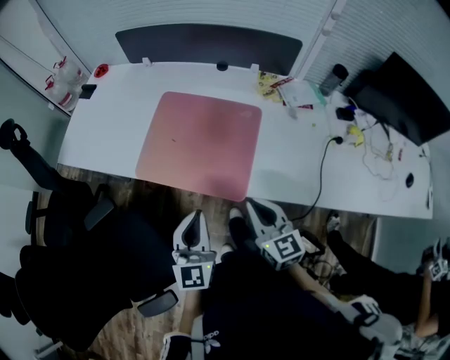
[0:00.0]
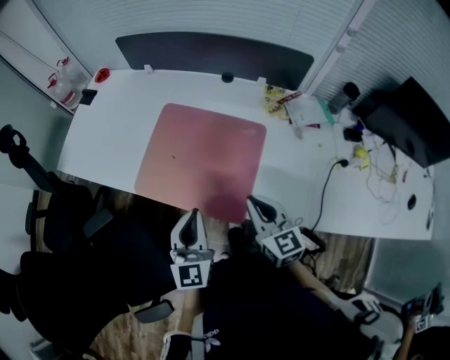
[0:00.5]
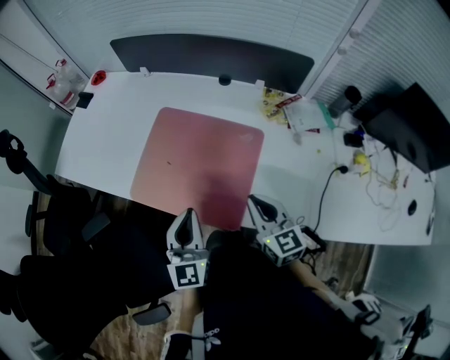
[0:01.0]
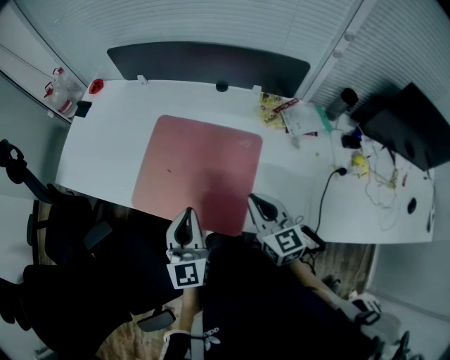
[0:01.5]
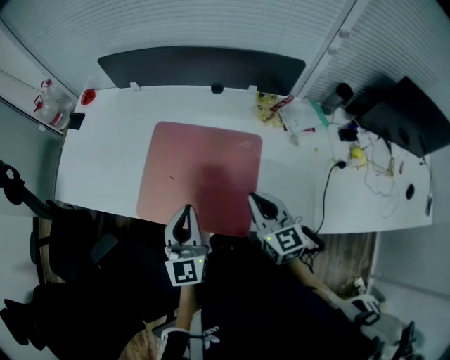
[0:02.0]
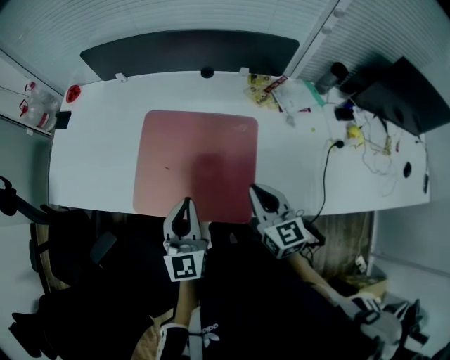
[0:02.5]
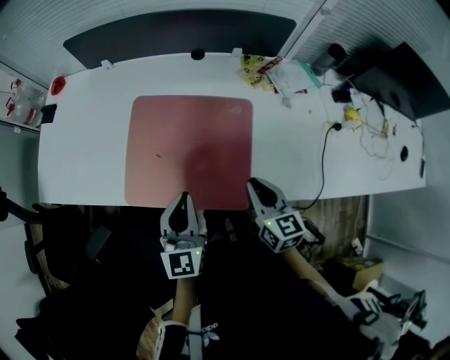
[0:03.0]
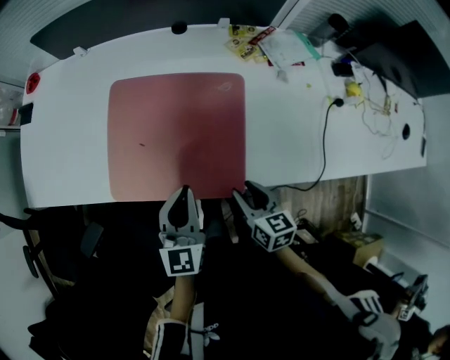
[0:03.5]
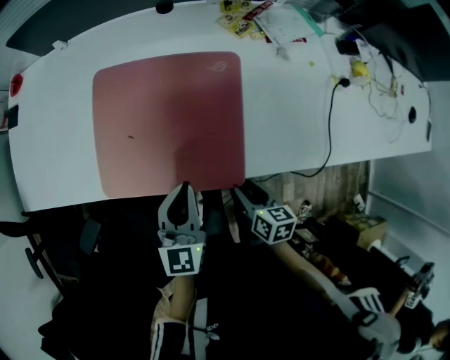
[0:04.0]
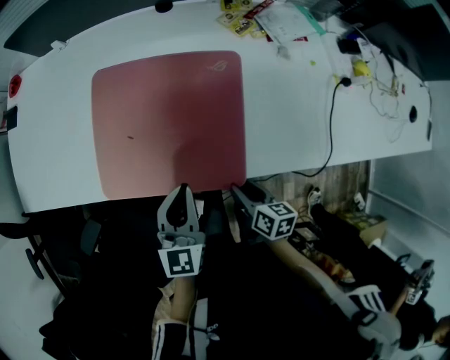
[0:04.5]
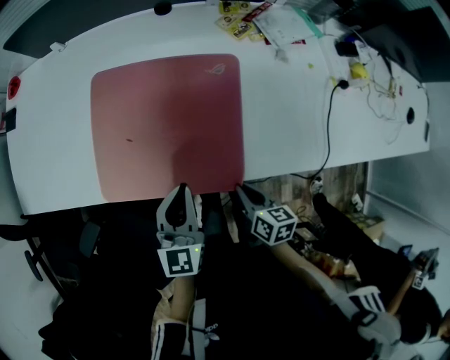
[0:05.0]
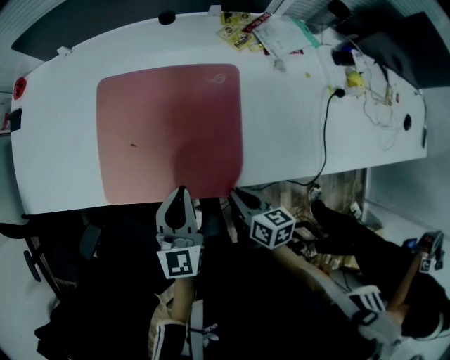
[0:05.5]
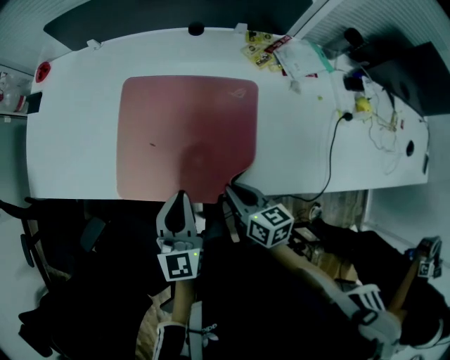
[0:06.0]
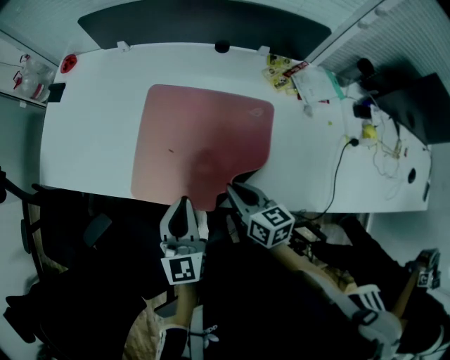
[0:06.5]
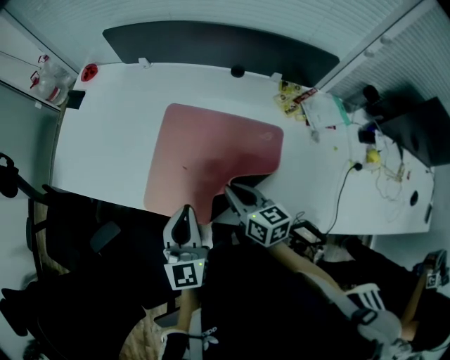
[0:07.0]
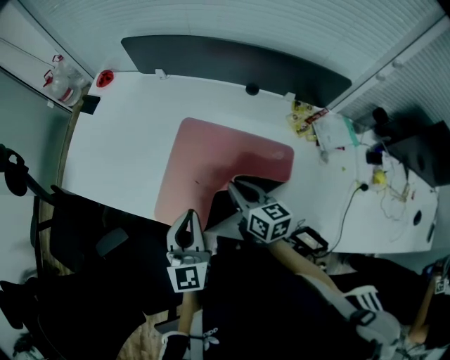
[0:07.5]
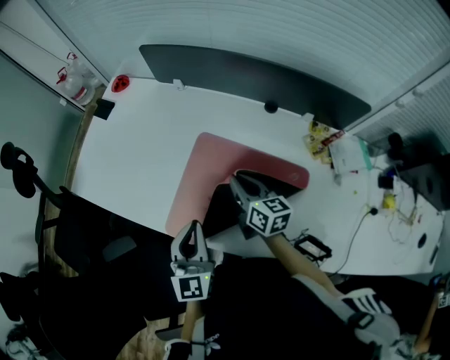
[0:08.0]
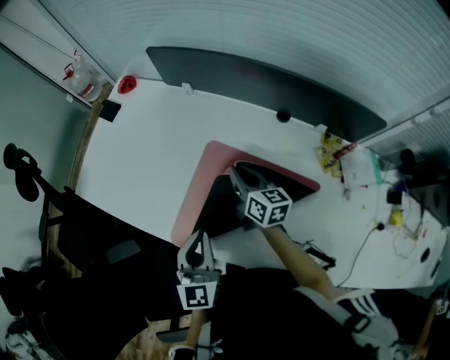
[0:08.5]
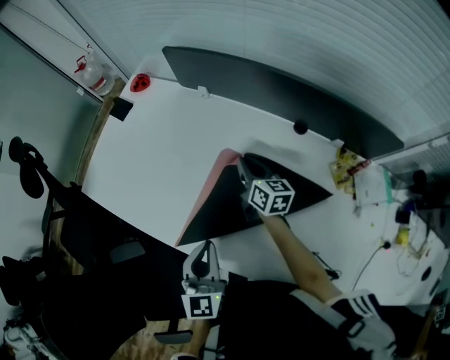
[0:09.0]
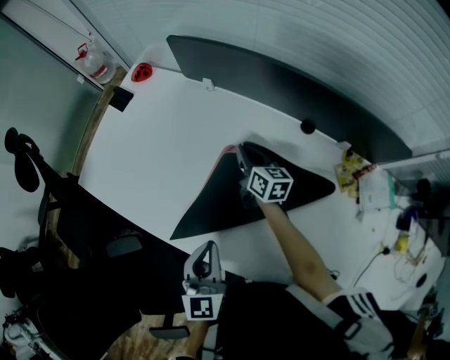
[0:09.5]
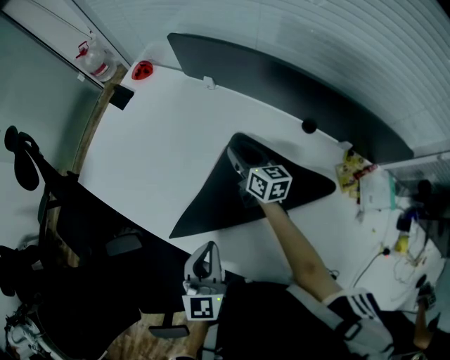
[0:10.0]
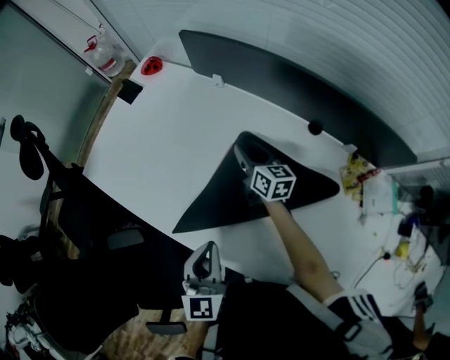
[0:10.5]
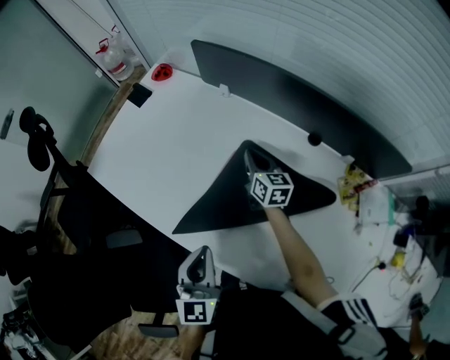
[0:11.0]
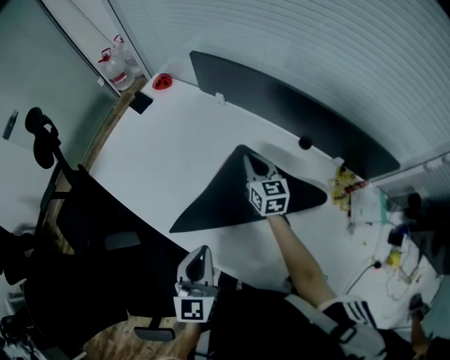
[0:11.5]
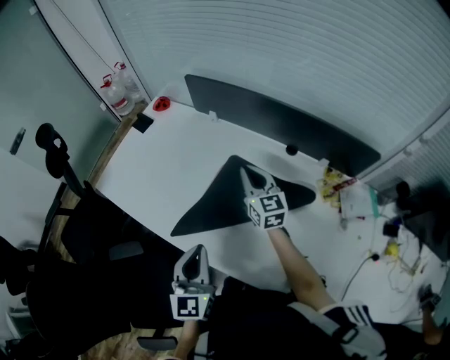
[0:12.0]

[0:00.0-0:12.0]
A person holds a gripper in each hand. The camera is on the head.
0:00.0 to 0:02.0: The two grippers go about 15 cm forward.
0:02.0 to 0:04.0: The left gripper heads downward, covering roughly 10 cm, and turns by approximately 20 degrees. The right gripper is displaced downward and backward by some 25 cm, swivels approximately 50 degrees, and opens.
0:04.0 to 0:06.0: The left gripper moves approximately 5 cm. The right gripper goes about 15 cm forward, upward and to the left, and closes.
0:06.0 to 0:08.0: The right gripper shifts approximately 25 cm forward. The left gripper heads forward and to the left, covering some 15 cm.
0:08.0 to 0:10.0: The right gripper moves forward, about 20 cm, and opens.
0:10.0 to 0:12.0: The left gripper is displaced upward and backward by roughly 10 cm, while the right gripper shifts about 15 cm upward and backward, changes its angle by approximately 30 degrees, and closes its fingers.

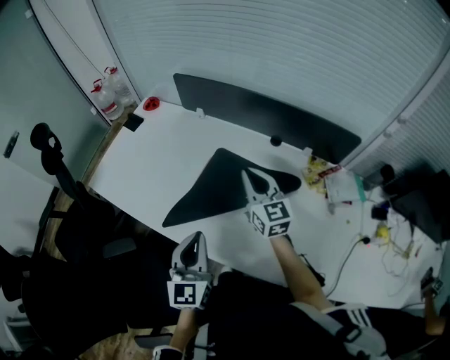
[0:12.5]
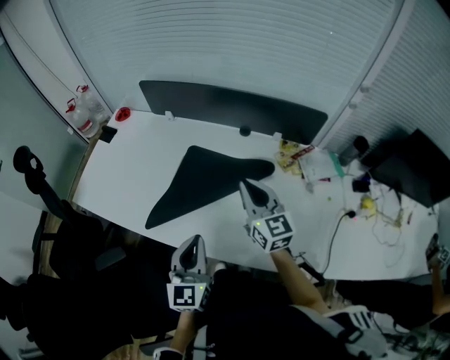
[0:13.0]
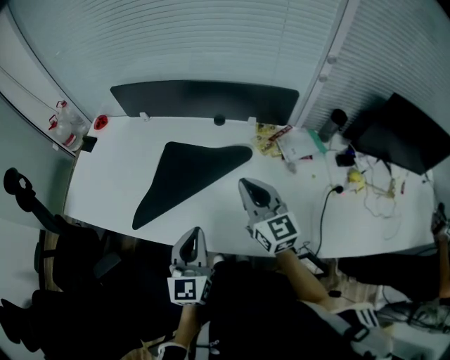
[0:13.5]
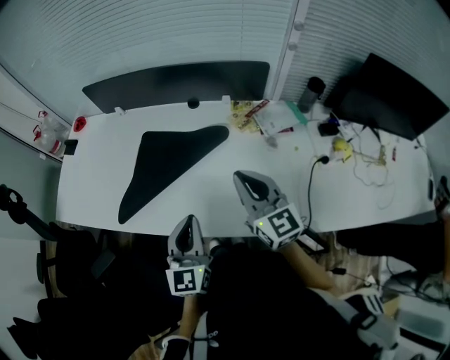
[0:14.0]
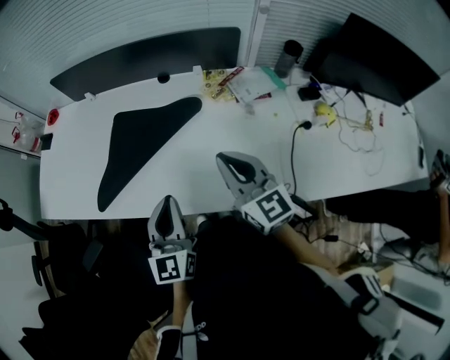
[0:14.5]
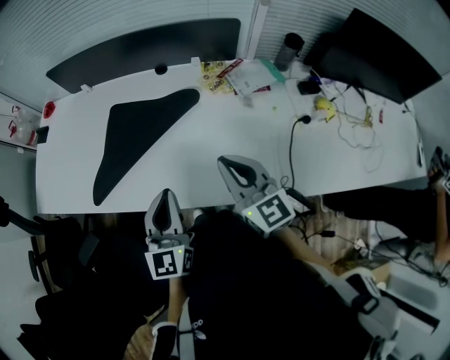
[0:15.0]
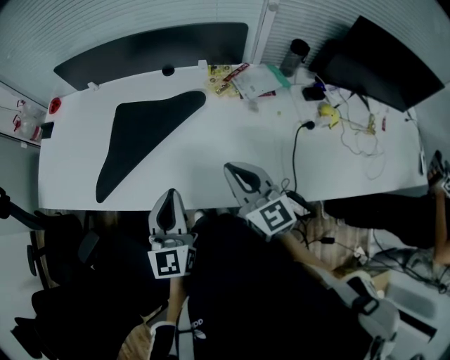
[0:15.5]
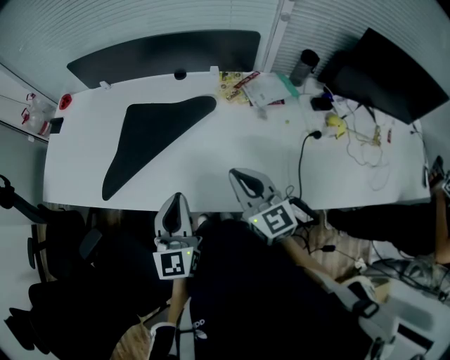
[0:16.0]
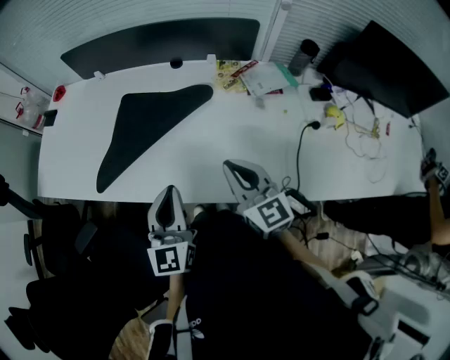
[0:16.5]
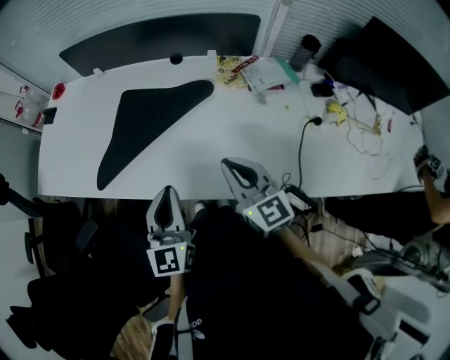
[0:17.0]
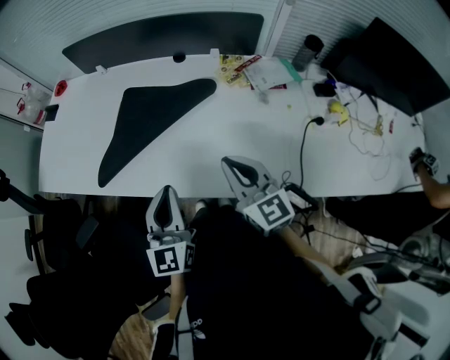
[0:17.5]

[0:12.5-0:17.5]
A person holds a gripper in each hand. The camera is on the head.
0:12.5 to 0:15.0: The left gripper goes some 20 cm to the right and backward; the right gripper is displaced backward and to the right by approximately 30 cm.
0:15.0 to 0:17.5: The grippers move only a little.

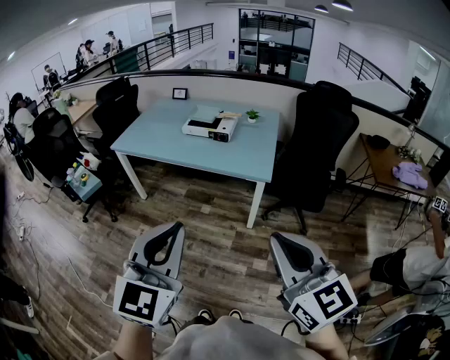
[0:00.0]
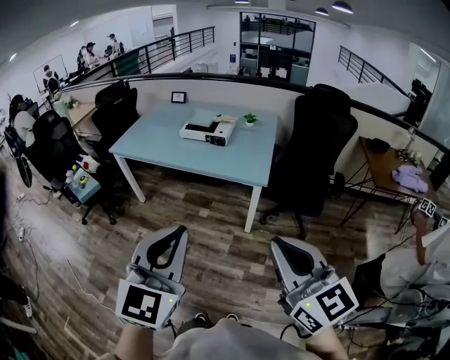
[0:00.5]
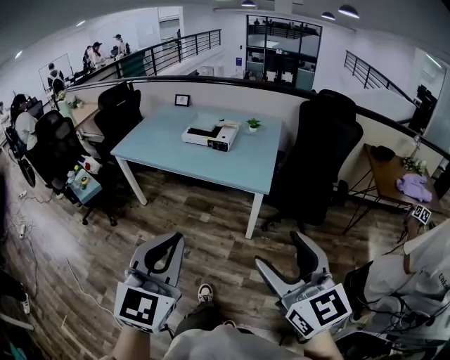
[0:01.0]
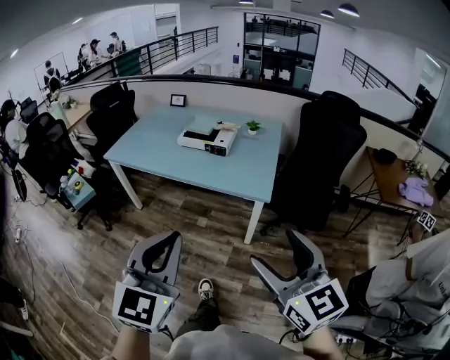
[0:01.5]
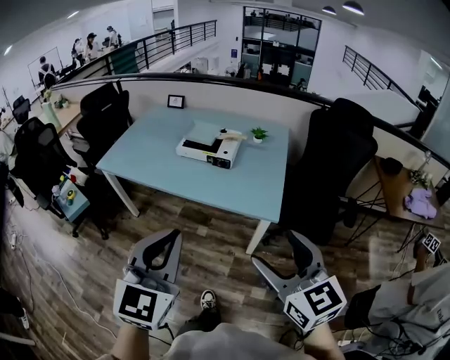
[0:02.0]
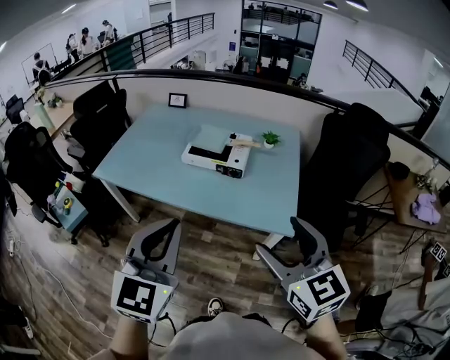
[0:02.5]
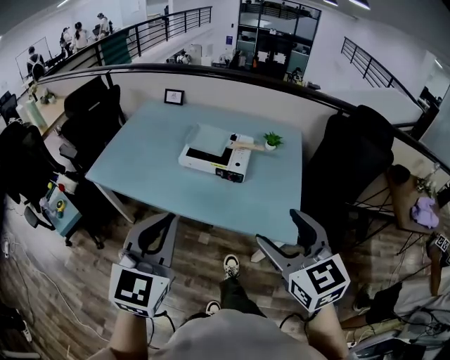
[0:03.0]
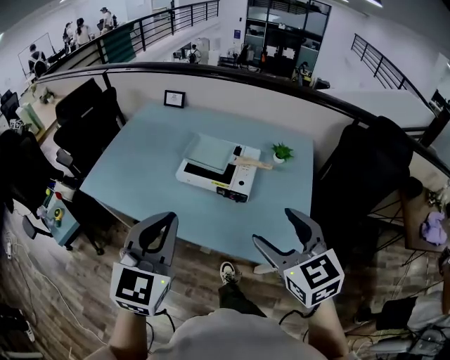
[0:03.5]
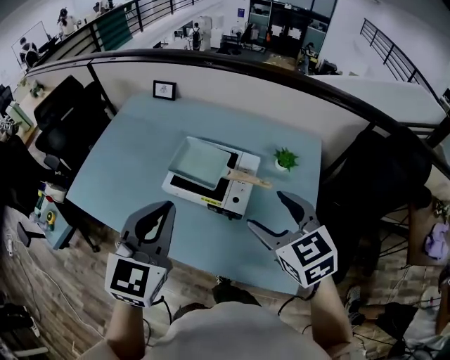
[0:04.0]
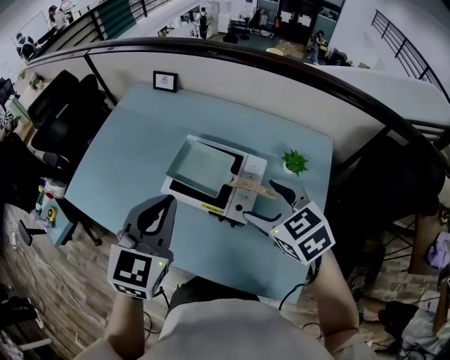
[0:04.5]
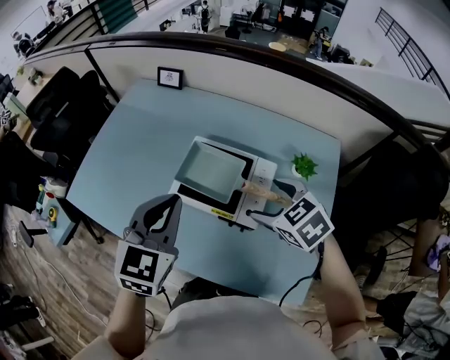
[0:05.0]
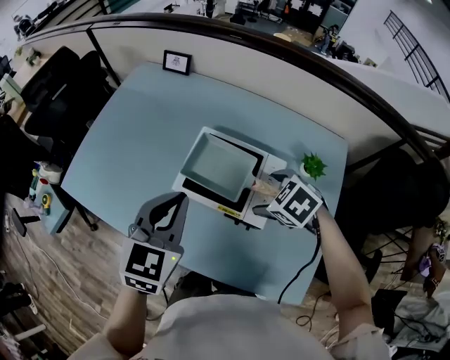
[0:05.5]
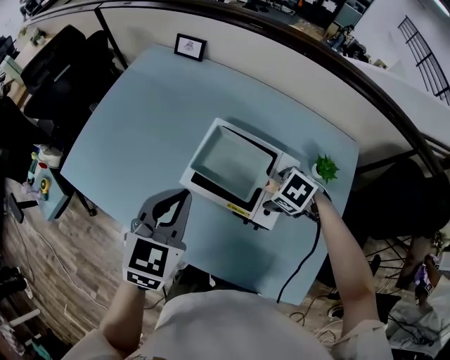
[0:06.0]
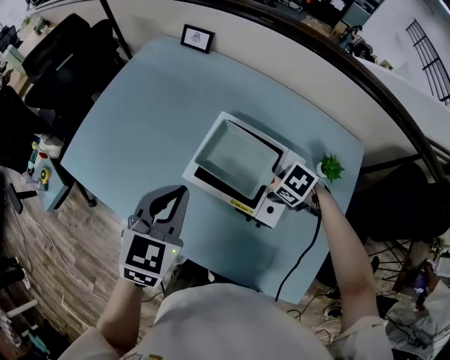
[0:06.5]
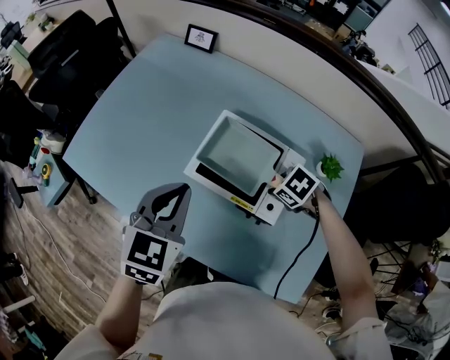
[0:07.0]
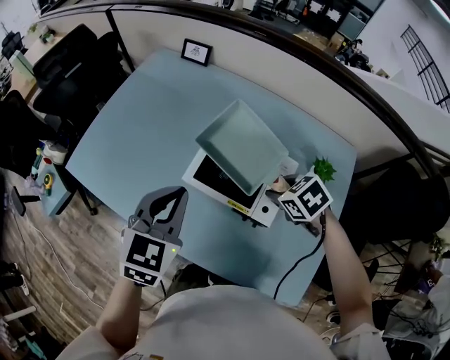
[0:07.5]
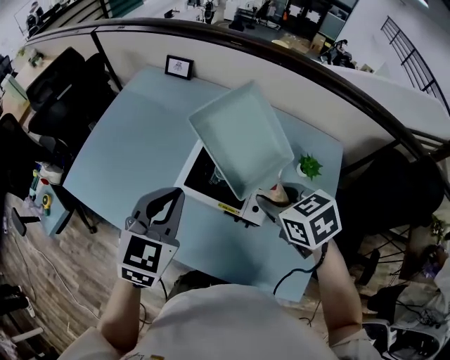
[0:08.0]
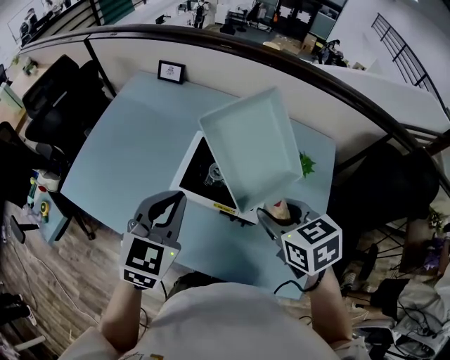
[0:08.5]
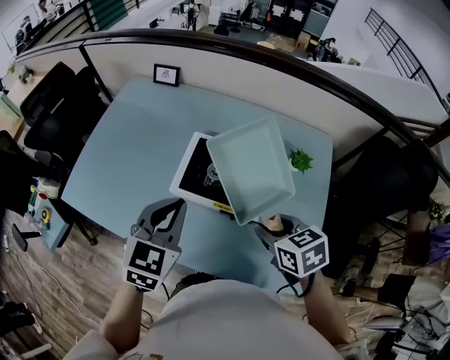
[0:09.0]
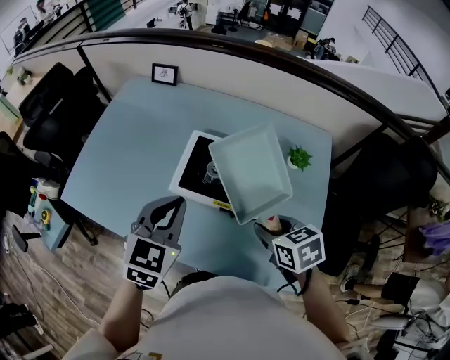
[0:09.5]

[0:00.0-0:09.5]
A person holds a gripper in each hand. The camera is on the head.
0:00.0 to 0:02.0: Both grippers travel together forward, approximately 30 cm. The right gripper opens its fingers.
0:02.0 to 0:04.0: The pair of grippers is taken forward, approximately 60 cm. The right gripper rotates about 20 degrees.
0:04.0 to 0:05.5: The right gripper shifts roughly 25 cm downward and forward, and tips its fingers downward by approximately 40 degrees; the left gripper shifts approximately 15 cm forward and downward.
0:05.5 to 0:07.5: The right gripper moves roughly 10 cm downward and comes back, and closes up.
0:07.5 to 0:09.5: The left gripper changes place by approximately 5 cm; the right gripper is displaced backward and upward by roughly 15 cm, and turns by some 30 degrees.
